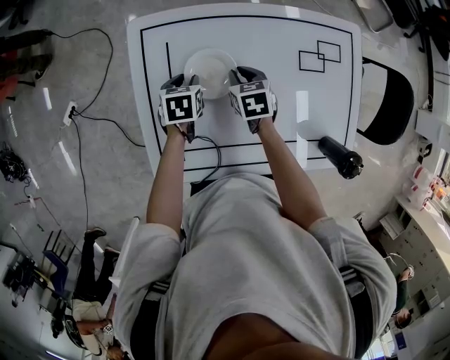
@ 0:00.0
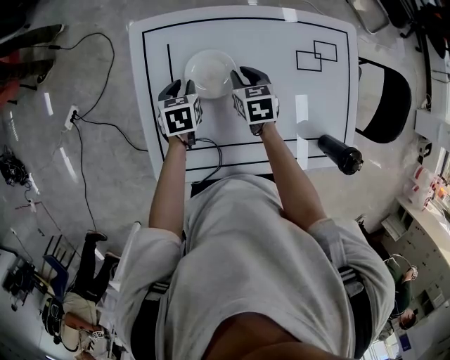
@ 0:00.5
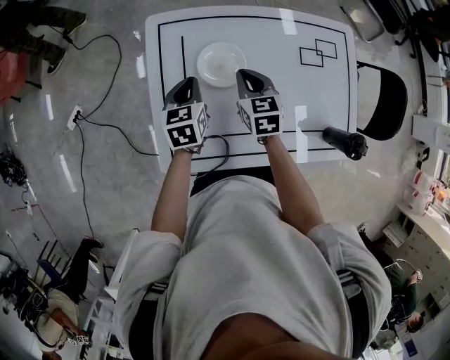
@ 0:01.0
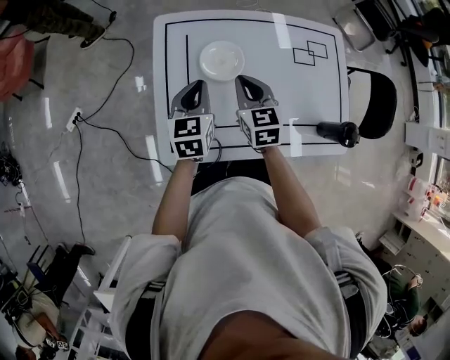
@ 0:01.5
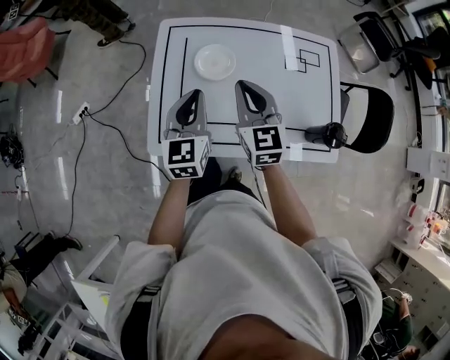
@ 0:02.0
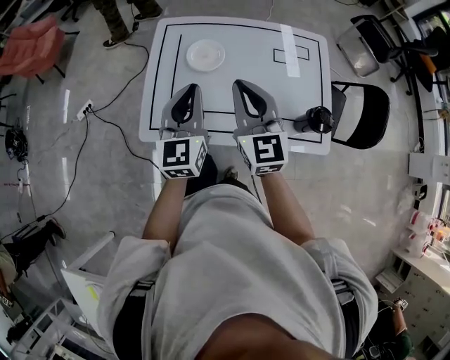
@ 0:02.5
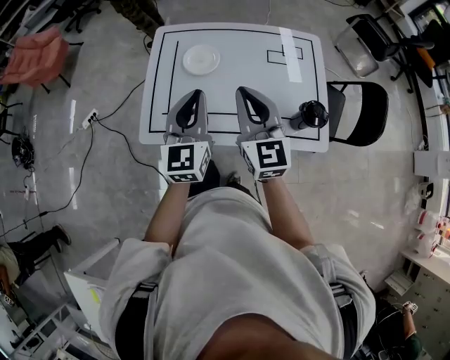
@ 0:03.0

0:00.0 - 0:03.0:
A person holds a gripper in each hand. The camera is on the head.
0:00.0 - 0:01.5: Both grippers move upward and backward, about 20 cm. The left gripper tilts its fingers roughly 30 degrees upward, and closes its fingers; the right gripper rotates approximately 30 degrees.
0:01.5 - 0:03.0: The two grippers go some 25 cm backward, upward and to the right. The right gripper swivels approximately 30 degrees; the left gripper changes its angle by approximately 30 degrees.

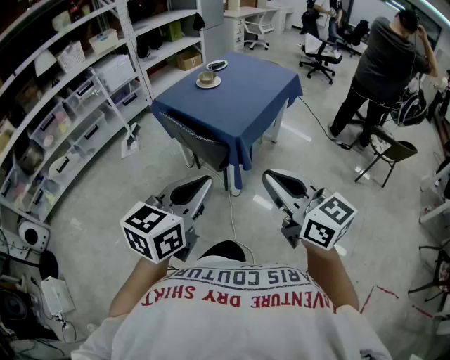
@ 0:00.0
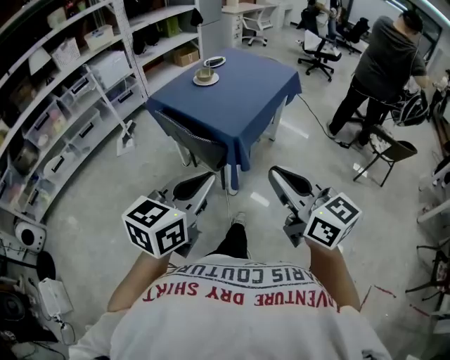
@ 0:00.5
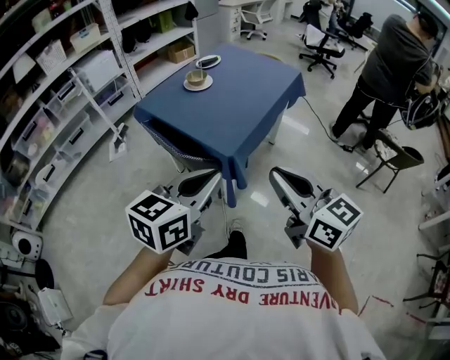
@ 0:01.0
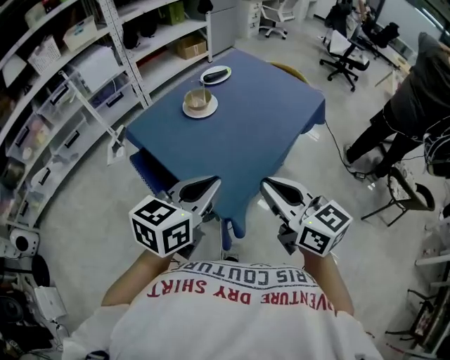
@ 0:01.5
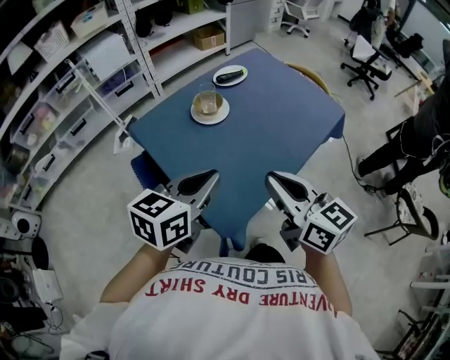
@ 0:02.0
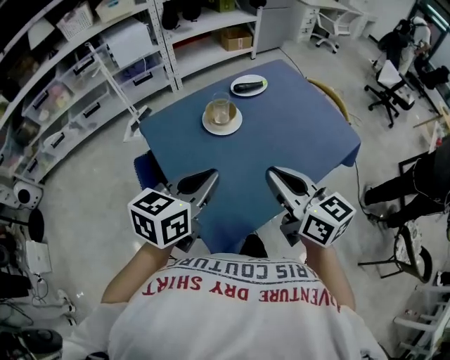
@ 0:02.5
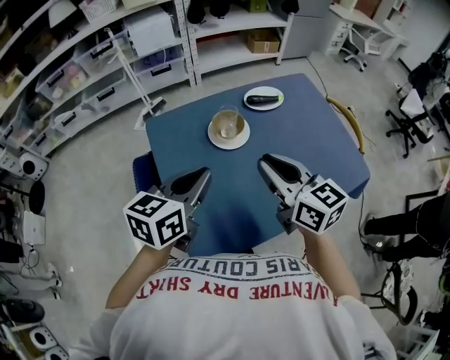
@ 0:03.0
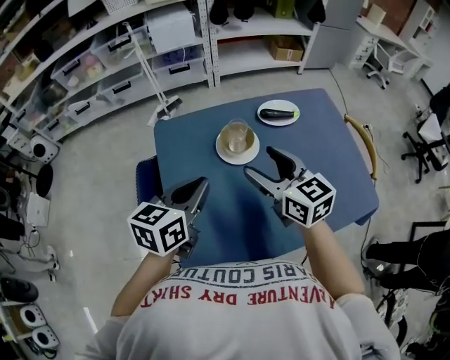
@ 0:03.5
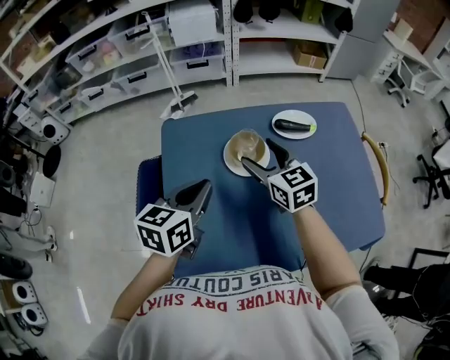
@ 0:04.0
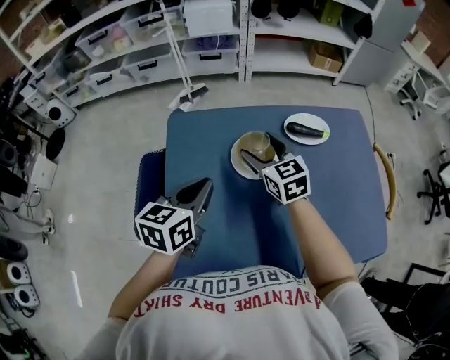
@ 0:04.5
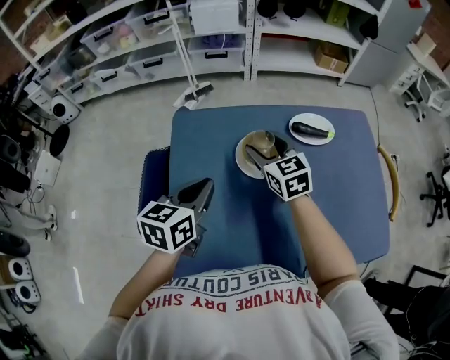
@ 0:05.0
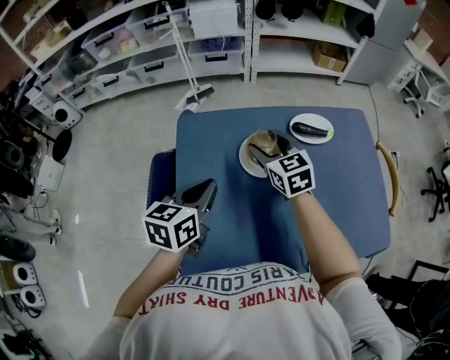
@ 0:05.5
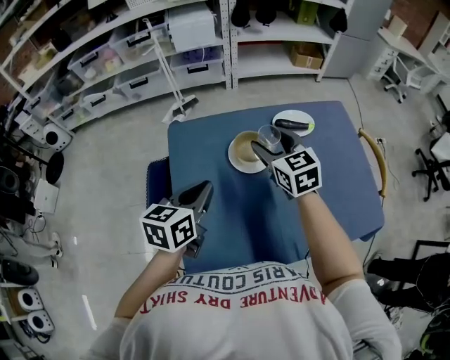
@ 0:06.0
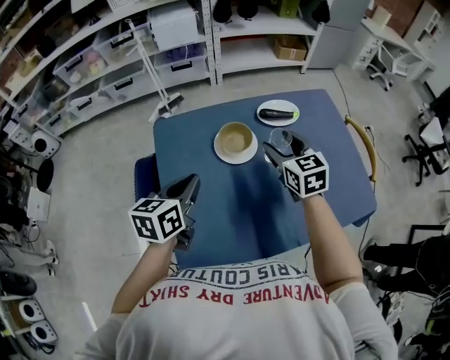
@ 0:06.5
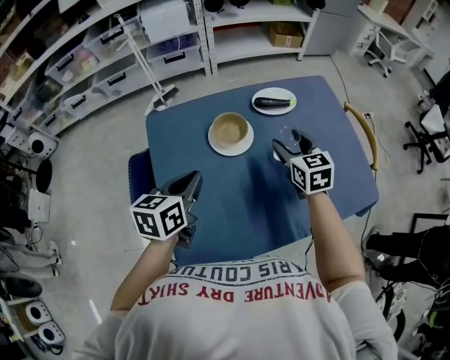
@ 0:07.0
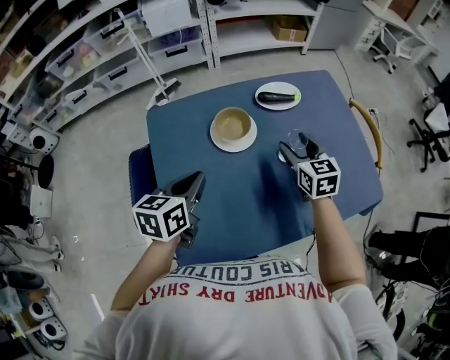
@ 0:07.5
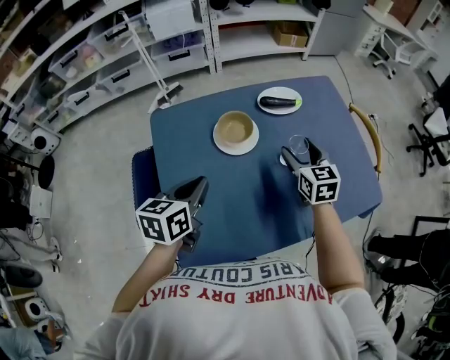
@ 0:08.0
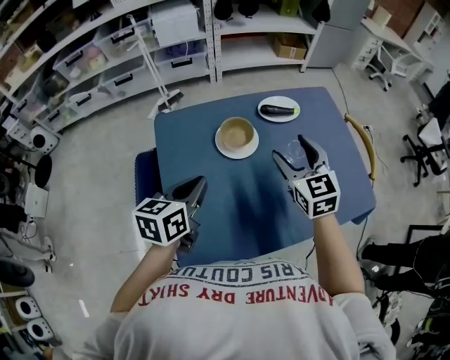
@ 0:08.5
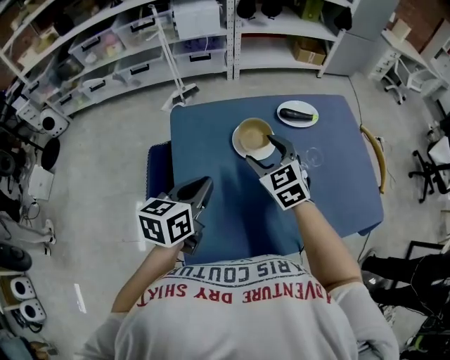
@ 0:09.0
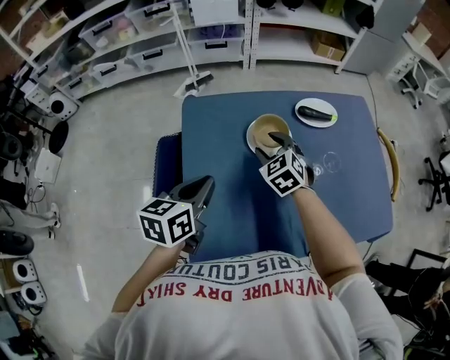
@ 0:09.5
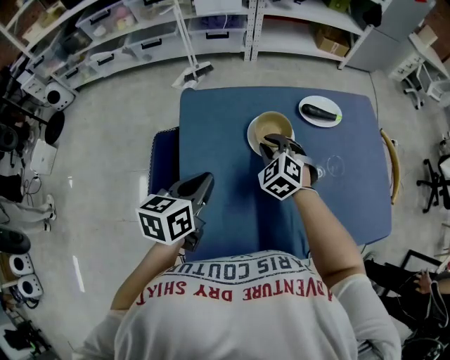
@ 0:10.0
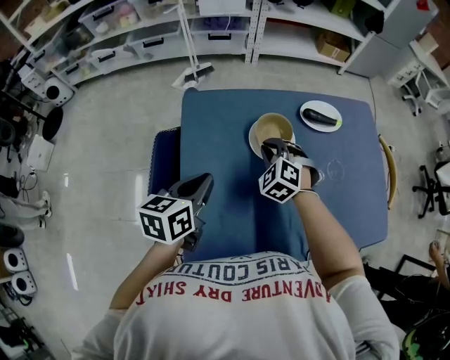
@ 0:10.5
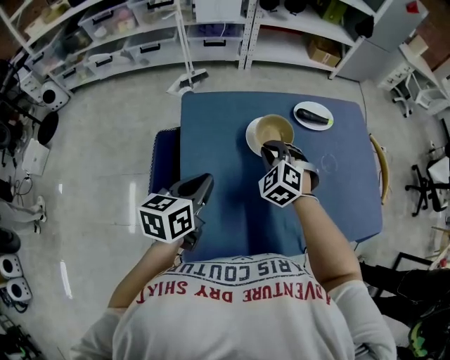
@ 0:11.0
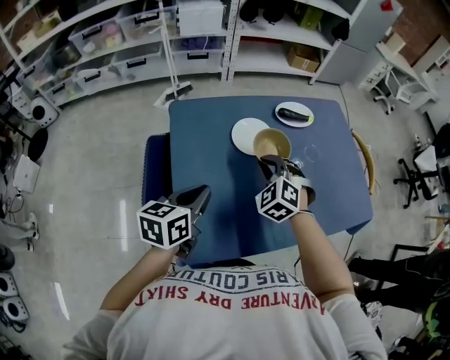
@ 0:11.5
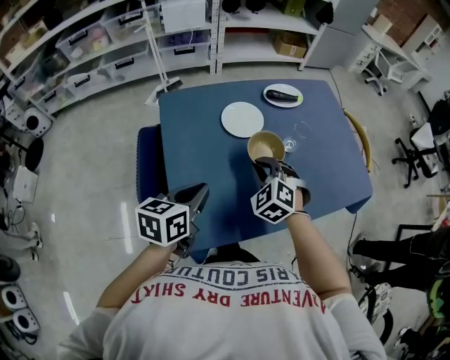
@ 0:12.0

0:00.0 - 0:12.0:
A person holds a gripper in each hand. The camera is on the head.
0:00.0 - 0:02.0: The pair of grippers is taken forward, about 50 cm.
0:02.0 - 0:04.0: The right gripper ends up approximately 35 cm from where it was, turns by approximately 40 degrees, and opens. The left gripper ends up about 20 cm from where it was, and rotates about 40 degrees.
0:06.0 - 0:08.0: The right gripper is displaced to the right and downward by some 20 cm, while the left gripper changes place by some 5 cm.
0:08.0 - 0:10.0: The left gripper shifts about 5 cm to the left. Meanwhile the right gripper goes approximately 20 cm to the left, rolls counterclockwise, seen from behind, by some 50 degrees, and closes up.
0:10.0 - 0:12.0: The right gripper goes roughly 15 cm backward and to the right. Meanwhile the left gripper goes about 10 cm backward.

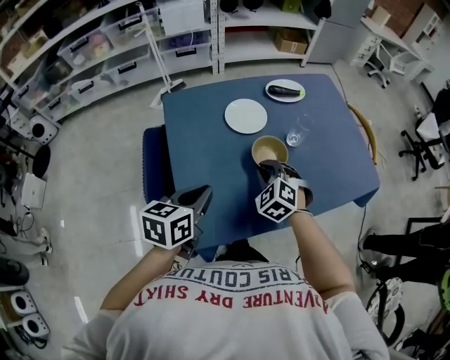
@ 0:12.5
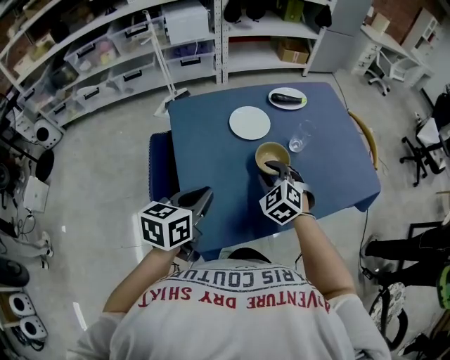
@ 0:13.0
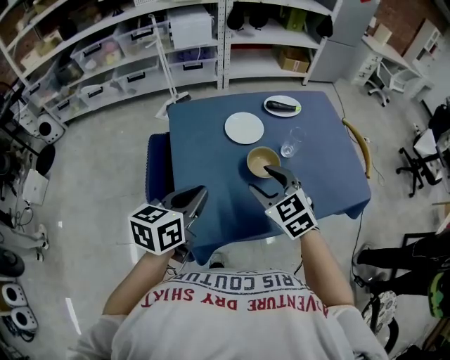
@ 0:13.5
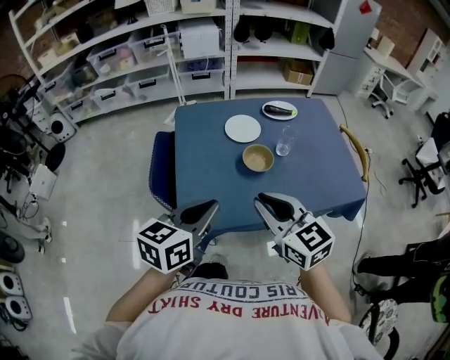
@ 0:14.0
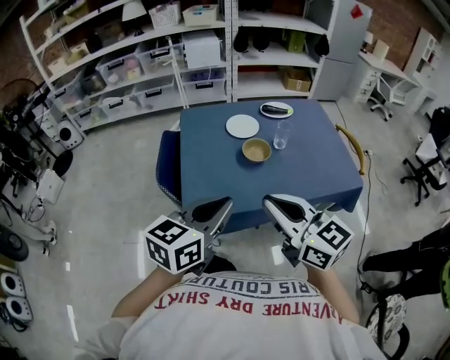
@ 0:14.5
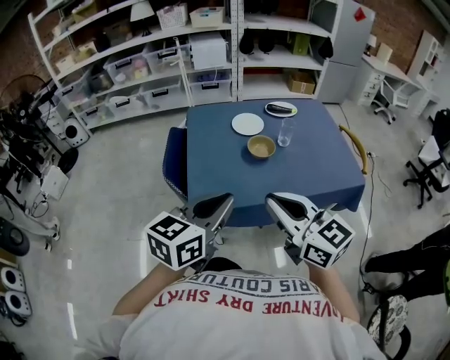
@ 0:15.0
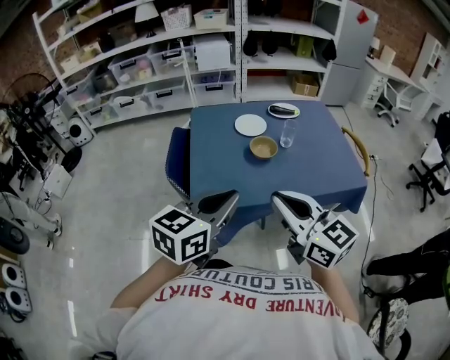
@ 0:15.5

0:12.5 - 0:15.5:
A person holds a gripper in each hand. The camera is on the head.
0:12.5 - 0:14.0: The left gripper heads upward, backward and to the right, covering approximately 15 cm; the right gripper travels upward and backward by roughly 25 cm, points its fingers roughly 30 degrees further upward, and opens and closes again.
0:14.0 - 0:15.5: The left gripper goes some 10 cm backward. The right gripper is displaced backward and upward by approximately 15 cm.

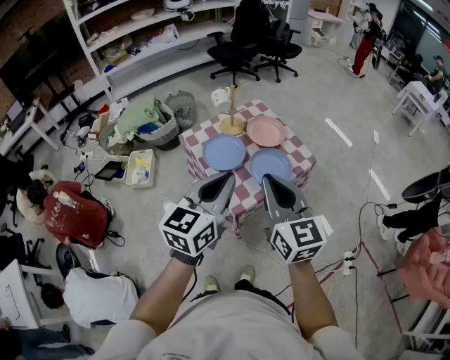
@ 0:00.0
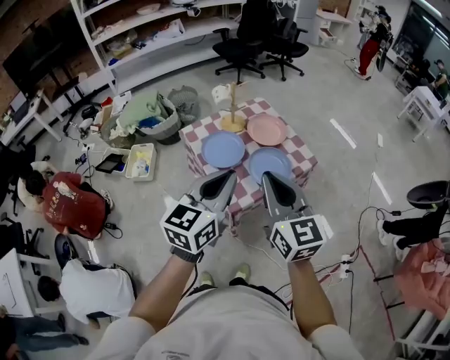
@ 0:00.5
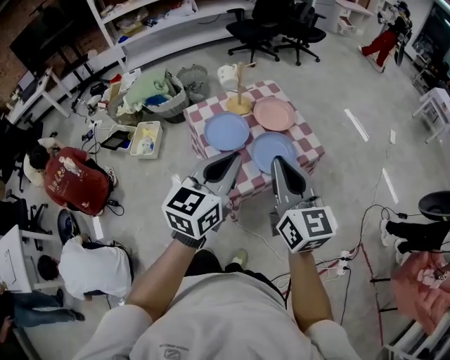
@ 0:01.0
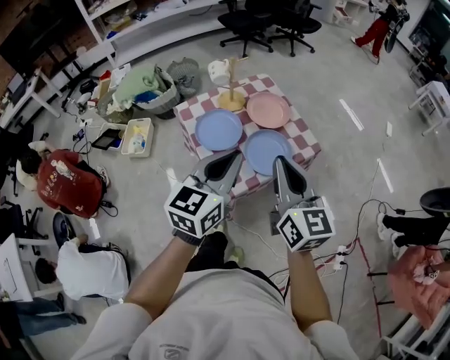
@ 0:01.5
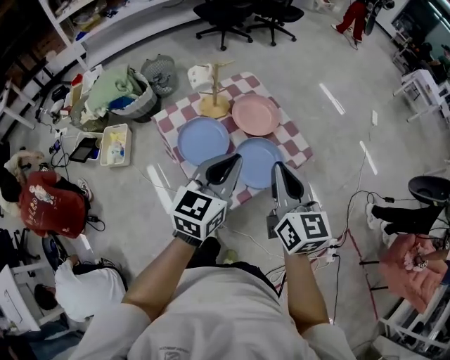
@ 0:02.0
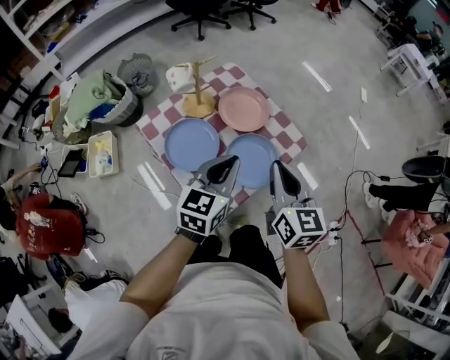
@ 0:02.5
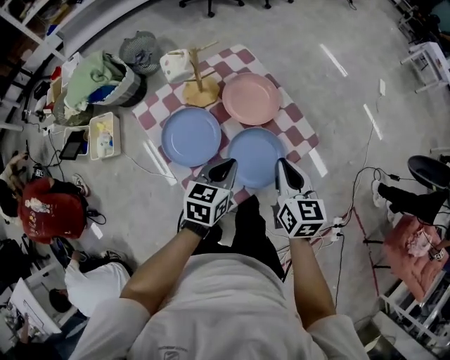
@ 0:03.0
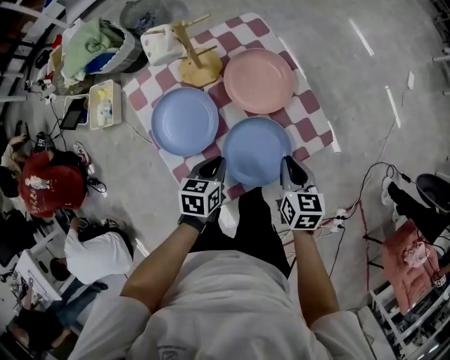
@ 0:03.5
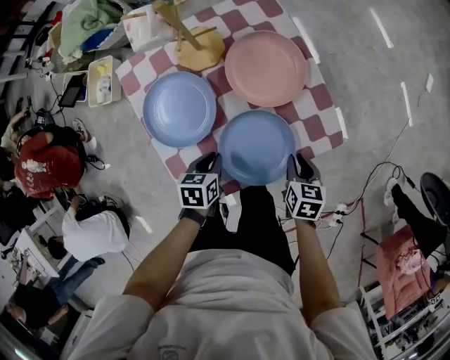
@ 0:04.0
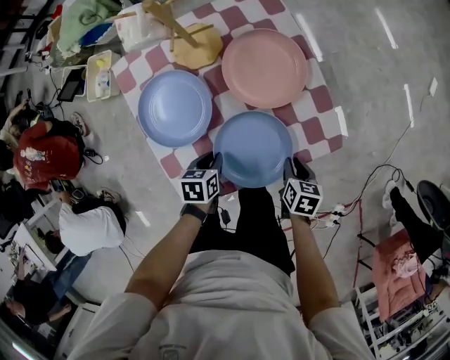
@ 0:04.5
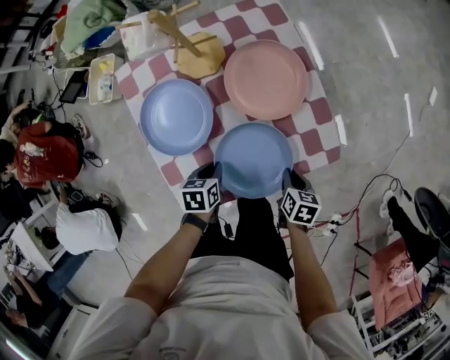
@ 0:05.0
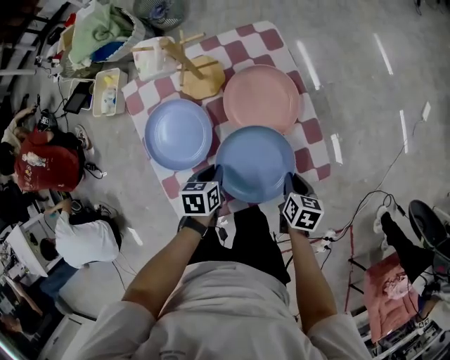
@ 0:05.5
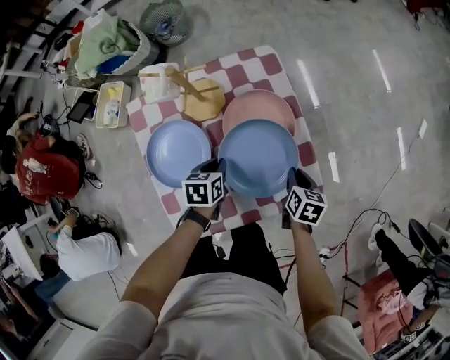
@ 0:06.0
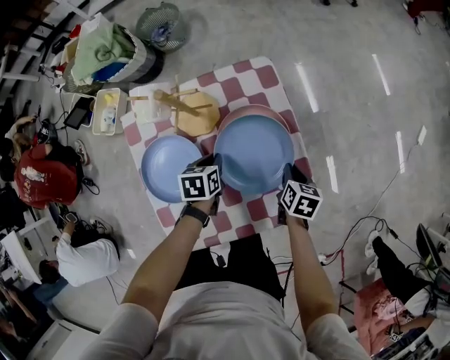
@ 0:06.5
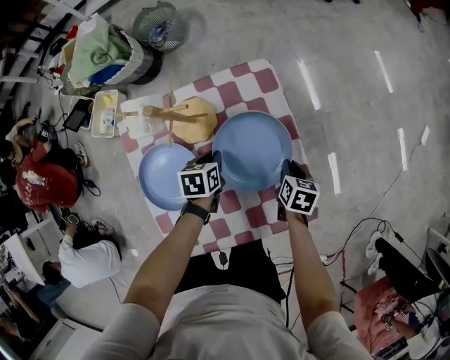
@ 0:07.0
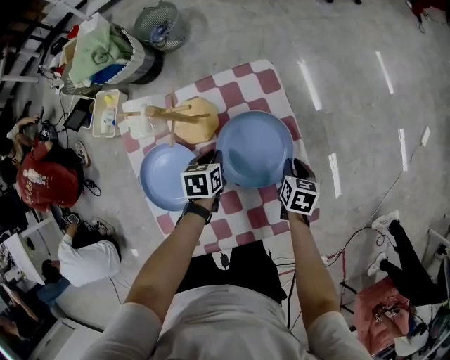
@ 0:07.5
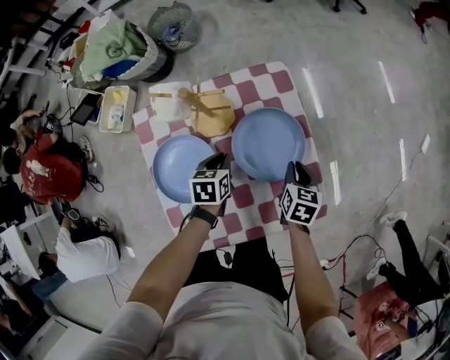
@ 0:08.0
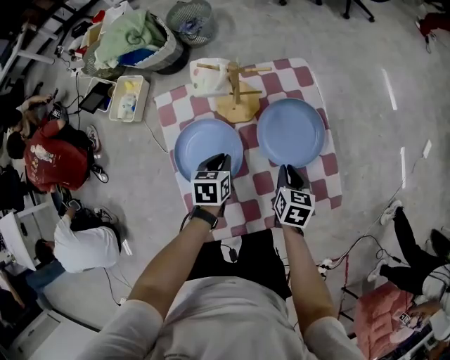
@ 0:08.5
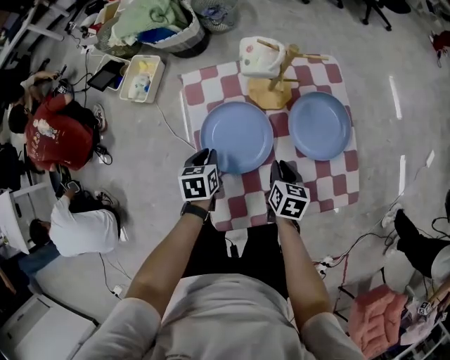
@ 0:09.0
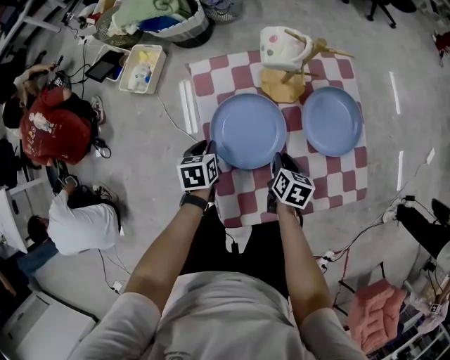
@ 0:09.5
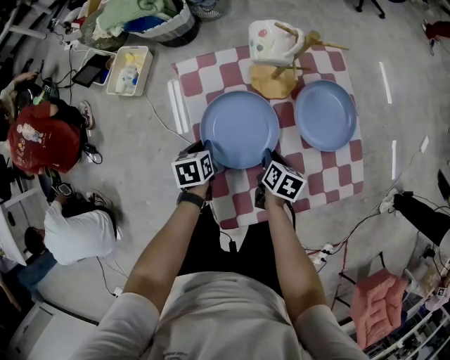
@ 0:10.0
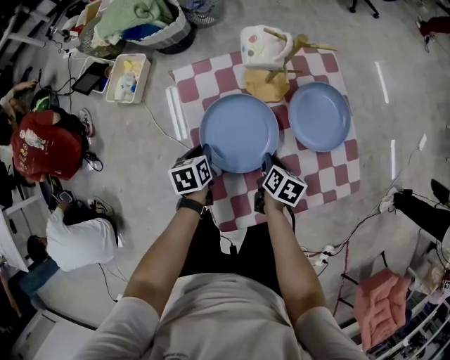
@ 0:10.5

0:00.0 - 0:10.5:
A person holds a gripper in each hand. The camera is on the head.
0:00.0 - 0:02.0: The two grippers go some 20 cm forward and downward.
0:02.0 - 0:04.0: The left gripper is displaced downward by some 40 cm, and points its fingers some 50 degrees further downward; the right gripper shifts some 50 cm downward and forward, and angles its fingers downward, by roughly 50 degrees.
0:04.0 - 0:06.5: Both grippers move forward, some 20 cm.
0:06.5 - 0:08.5: Both grippers travel together to the left and backward, approximately 15 cm.
0:08.5 - 0:10.5: The left gripper travels to the left by roughly 15 cm, while the right gripper moves to the left and downward, about 15 cm, and rotates roughly 20 degrees.
